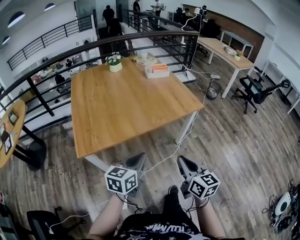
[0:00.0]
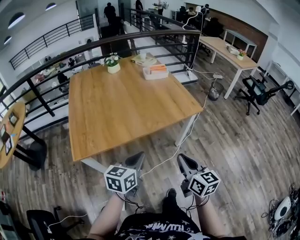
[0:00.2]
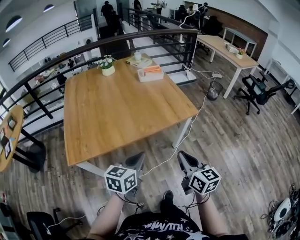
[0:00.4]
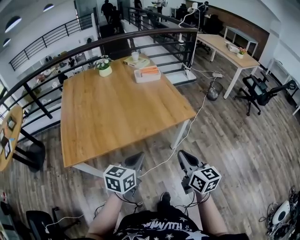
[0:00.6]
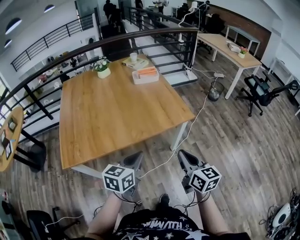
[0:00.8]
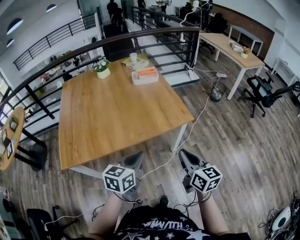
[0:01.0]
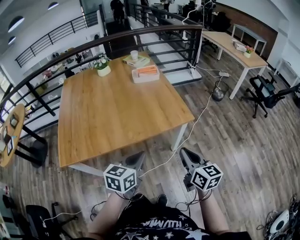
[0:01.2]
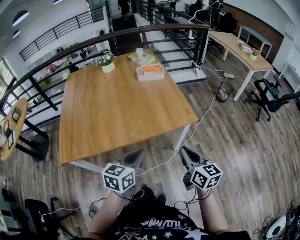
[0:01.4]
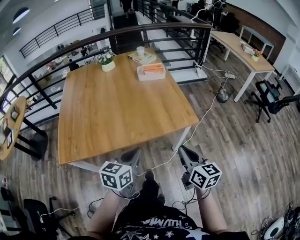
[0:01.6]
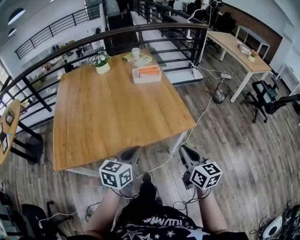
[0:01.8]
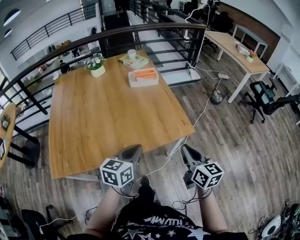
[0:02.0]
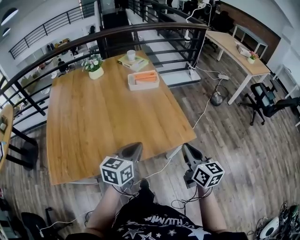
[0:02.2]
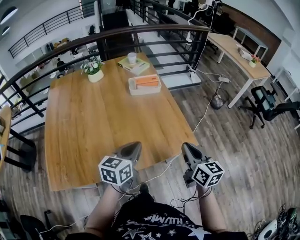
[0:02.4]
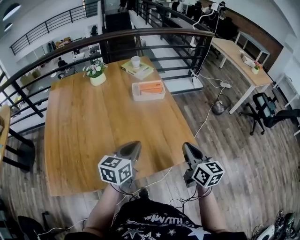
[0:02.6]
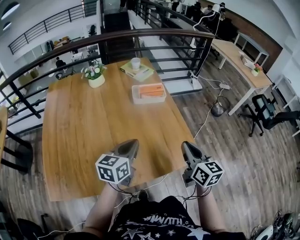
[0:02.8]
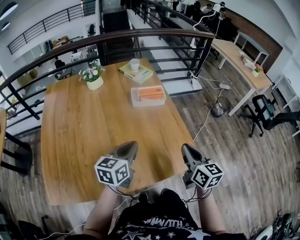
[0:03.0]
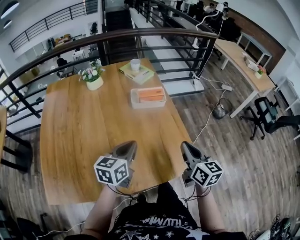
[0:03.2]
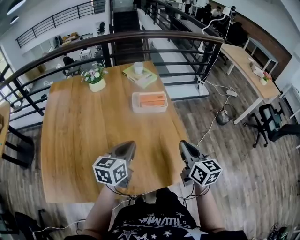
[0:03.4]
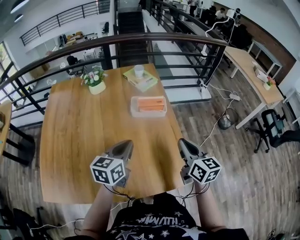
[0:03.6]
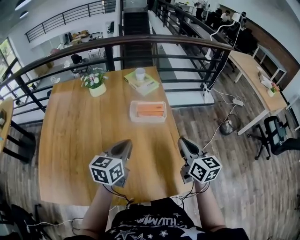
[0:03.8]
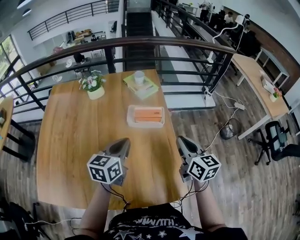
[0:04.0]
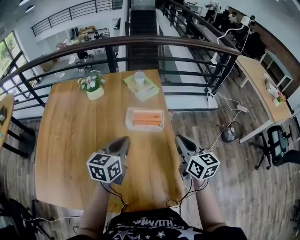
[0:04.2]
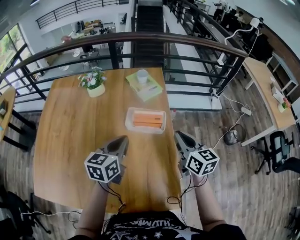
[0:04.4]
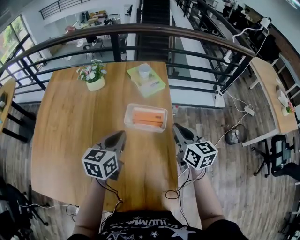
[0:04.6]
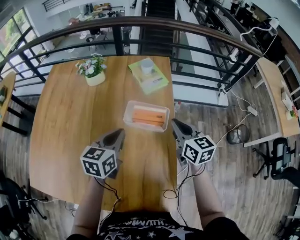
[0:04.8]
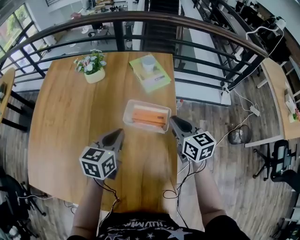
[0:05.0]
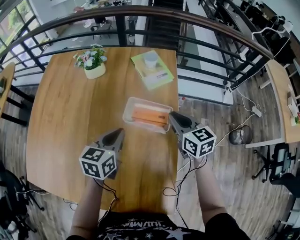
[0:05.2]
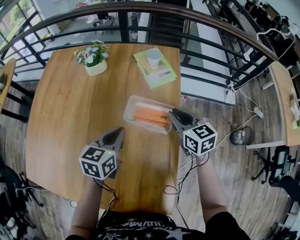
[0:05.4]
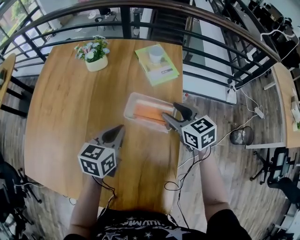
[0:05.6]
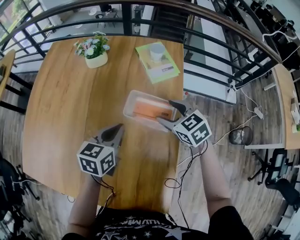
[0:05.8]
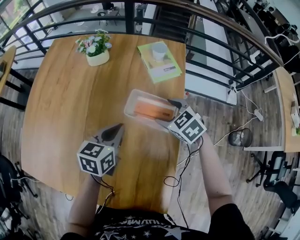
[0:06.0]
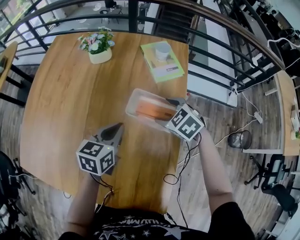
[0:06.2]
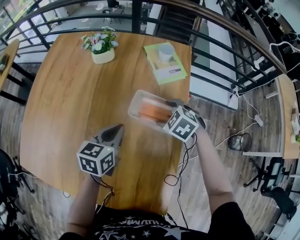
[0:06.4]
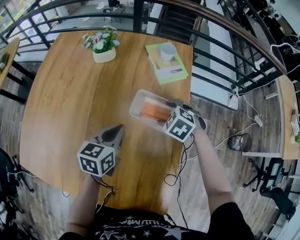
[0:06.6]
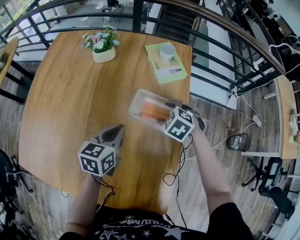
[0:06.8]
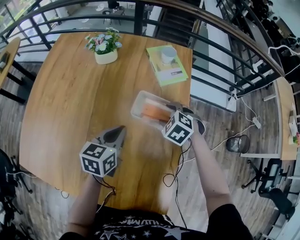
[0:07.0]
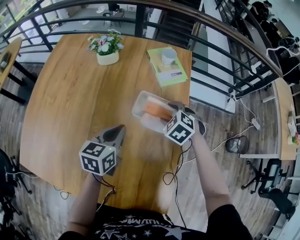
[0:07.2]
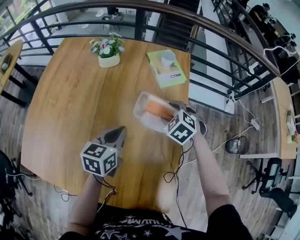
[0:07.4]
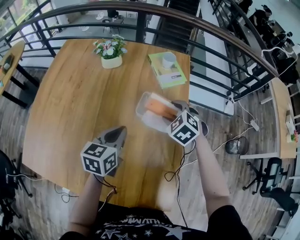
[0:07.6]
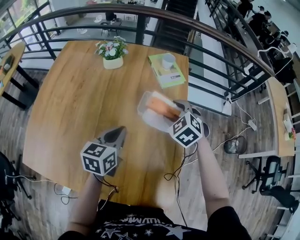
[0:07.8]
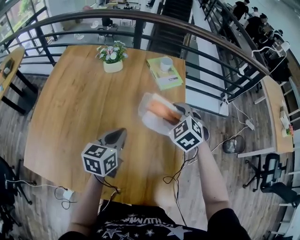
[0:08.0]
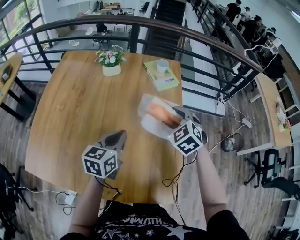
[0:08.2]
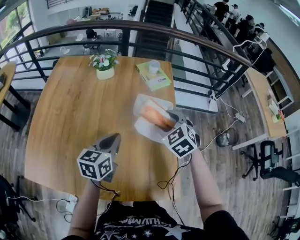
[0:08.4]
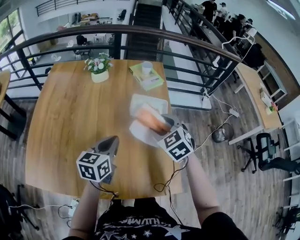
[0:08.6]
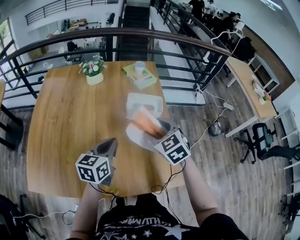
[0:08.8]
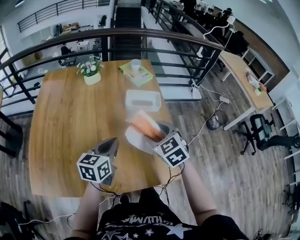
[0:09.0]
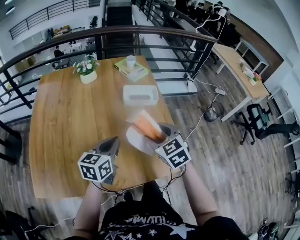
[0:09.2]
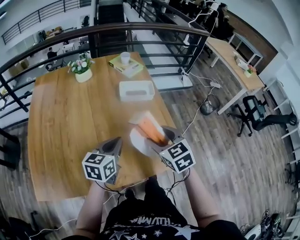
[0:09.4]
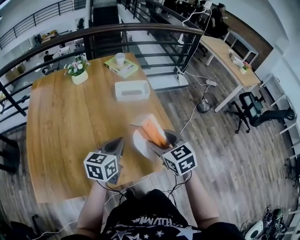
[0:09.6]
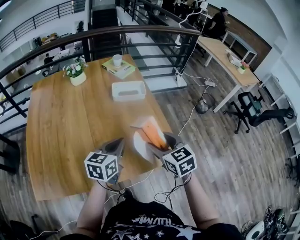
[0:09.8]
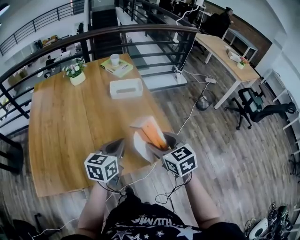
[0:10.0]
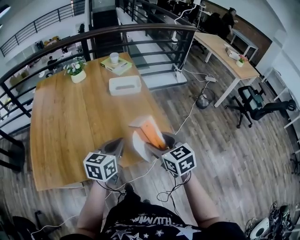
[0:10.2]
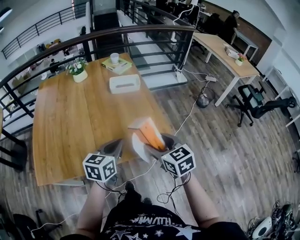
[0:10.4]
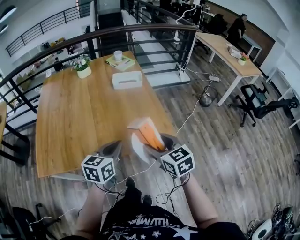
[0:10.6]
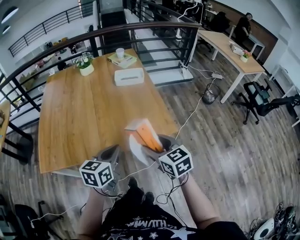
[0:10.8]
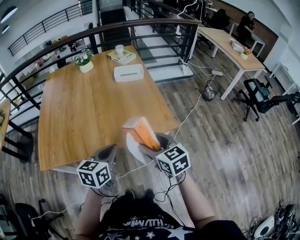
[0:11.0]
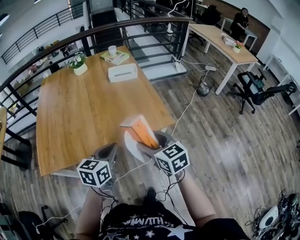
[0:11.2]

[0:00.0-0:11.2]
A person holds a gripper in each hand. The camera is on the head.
0:00.0 to 0:01.6: Both grippers travel together forward and to the right, roughly 30 cm.
0:01.6 to 0:03.2: The two grippers go approximately 40 cm forward.
0:03.2 to 0:04.8: Both grippers move forward, about 35 cm. The right gripper swivels approximately 30 degrees. The left gripper turns by approximately 20 degrees.
0:04.8 to 0:06.4: The left gripper moves downward, some 10 cm; the right gripper travels downward, forward and to the left by some 20 cm, tilts its fingers roughly 40 degrees downward, and opens its fingers.
0:06.4 to 0:08.0: The right gripper is displaced upward and backward by approximately 15 cm, and changes its angle by approximately 20 degrees. Meanwhile the left gripper travels backward, upward and to the left by about 15 cm.
0:08.0 to 0:09.6: The left gripper is displaced backward by approximately 25 cm, and turns by roughly 30 degrees. Meanwhile the right gripper heads backward, covering some 35 cm, and rolls clockwise, seen from behind, by roughly 40 degrees.
0:09.6 to 0:11.2: The two grippers go roughly 25 cm backward.

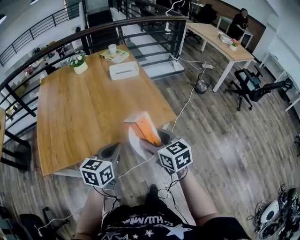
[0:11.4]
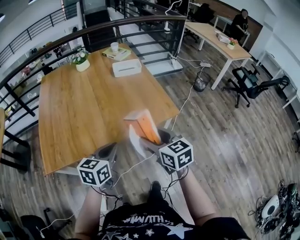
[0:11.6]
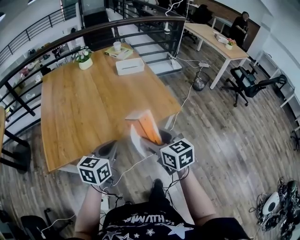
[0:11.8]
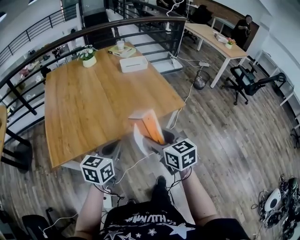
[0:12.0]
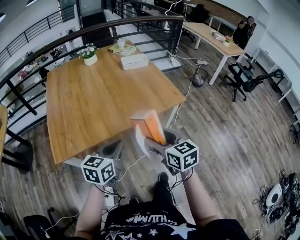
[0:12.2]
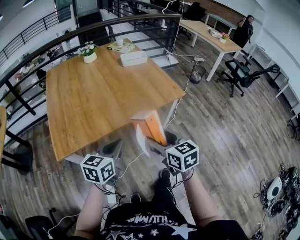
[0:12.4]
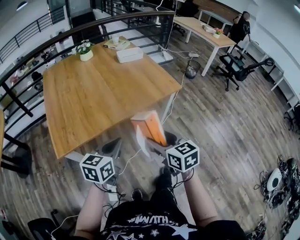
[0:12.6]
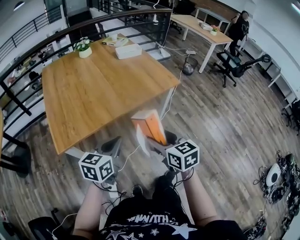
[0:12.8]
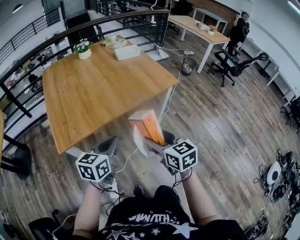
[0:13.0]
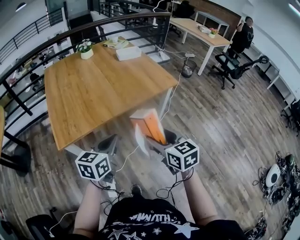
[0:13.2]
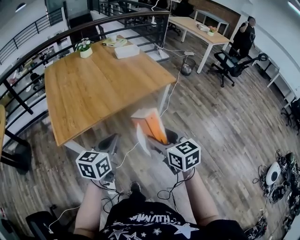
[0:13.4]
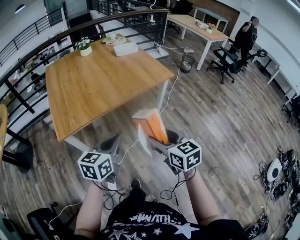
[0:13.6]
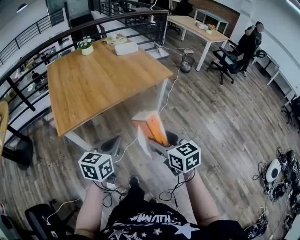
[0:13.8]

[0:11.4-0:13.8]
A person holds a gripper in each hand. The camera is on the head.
0:11.4 to 0:12.6: Both grippers travel together backward and to the left, roughly 30 cm.
0:12.6 to 0:13.8: Both grippers travel together backward, some 20 cm.

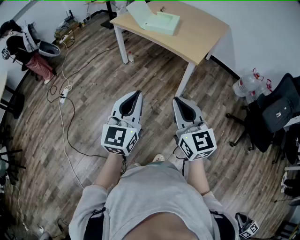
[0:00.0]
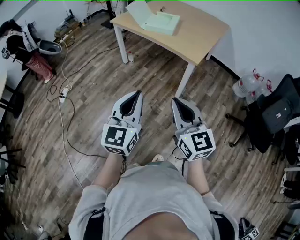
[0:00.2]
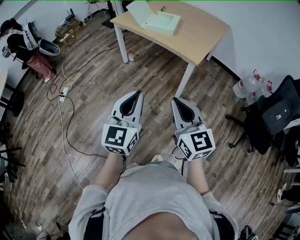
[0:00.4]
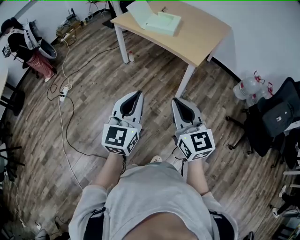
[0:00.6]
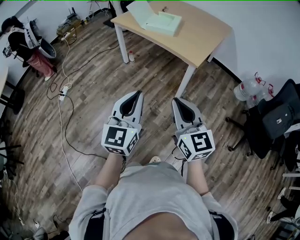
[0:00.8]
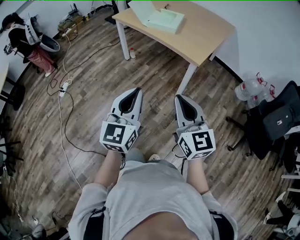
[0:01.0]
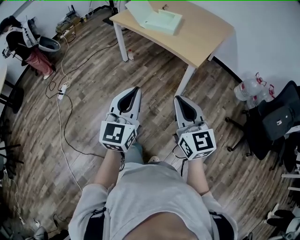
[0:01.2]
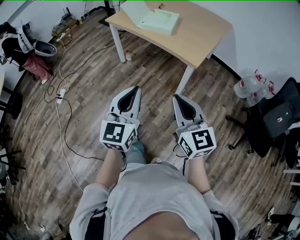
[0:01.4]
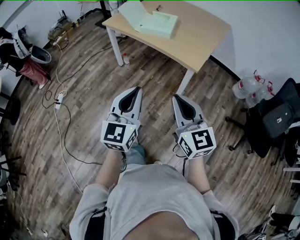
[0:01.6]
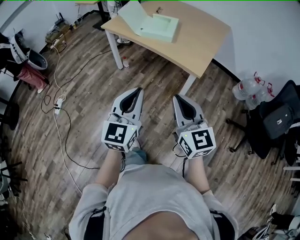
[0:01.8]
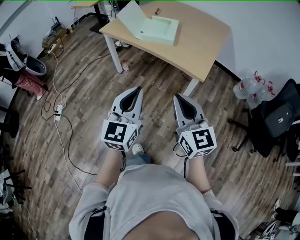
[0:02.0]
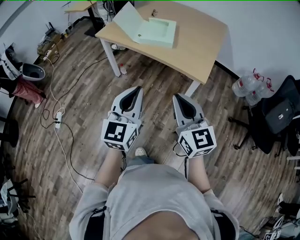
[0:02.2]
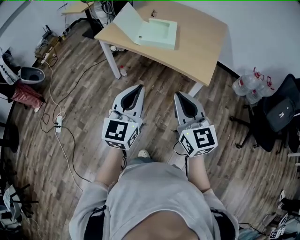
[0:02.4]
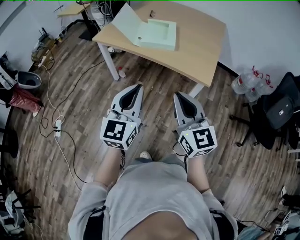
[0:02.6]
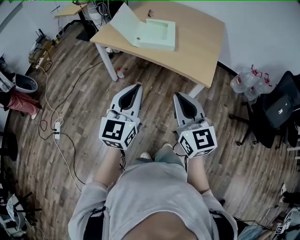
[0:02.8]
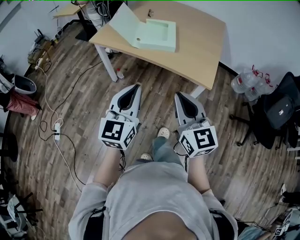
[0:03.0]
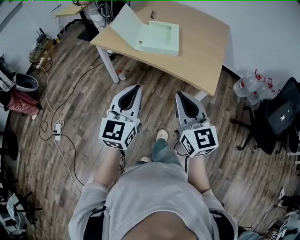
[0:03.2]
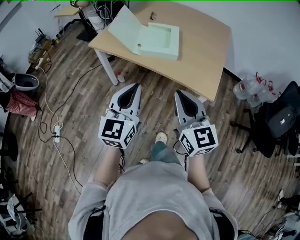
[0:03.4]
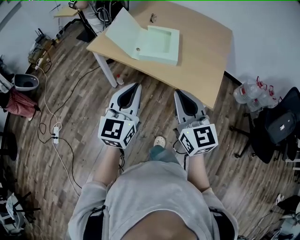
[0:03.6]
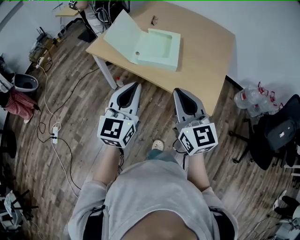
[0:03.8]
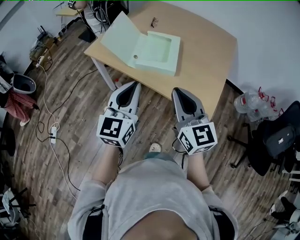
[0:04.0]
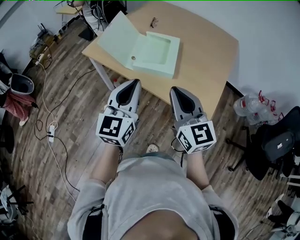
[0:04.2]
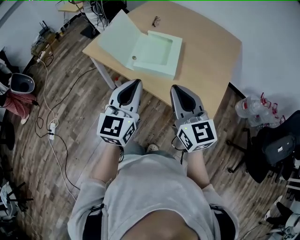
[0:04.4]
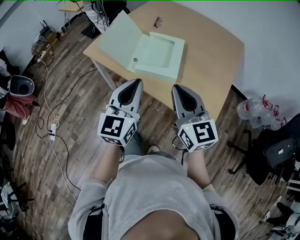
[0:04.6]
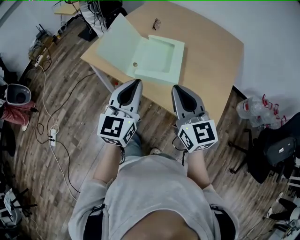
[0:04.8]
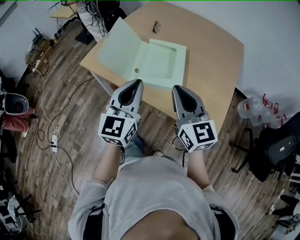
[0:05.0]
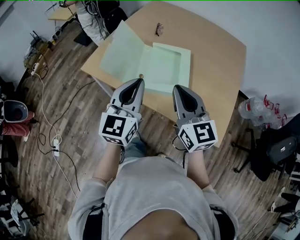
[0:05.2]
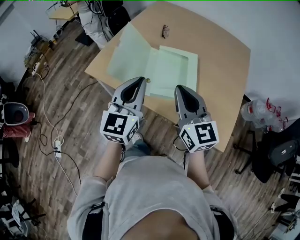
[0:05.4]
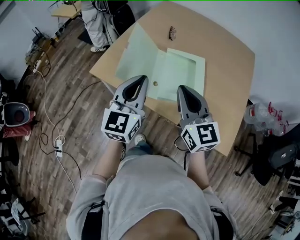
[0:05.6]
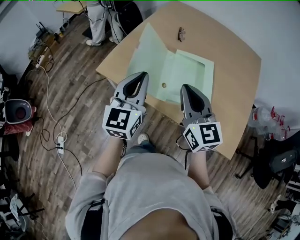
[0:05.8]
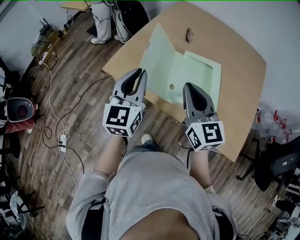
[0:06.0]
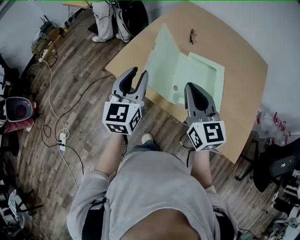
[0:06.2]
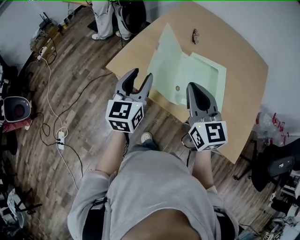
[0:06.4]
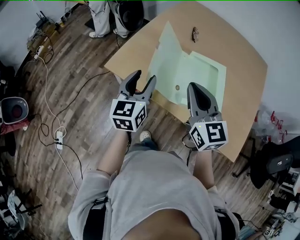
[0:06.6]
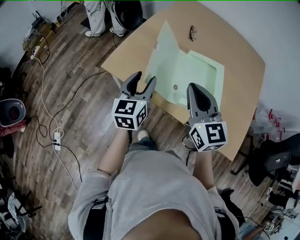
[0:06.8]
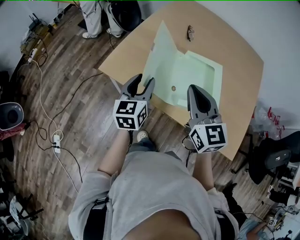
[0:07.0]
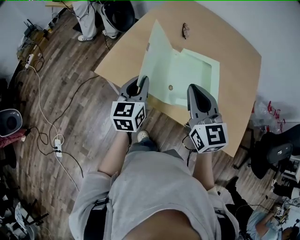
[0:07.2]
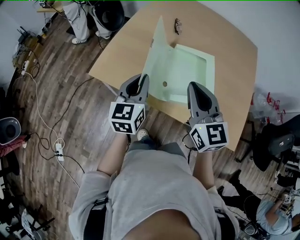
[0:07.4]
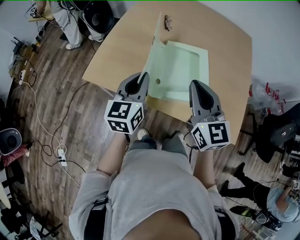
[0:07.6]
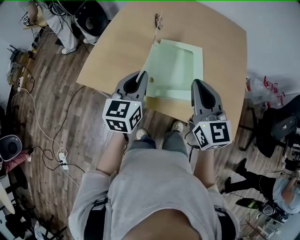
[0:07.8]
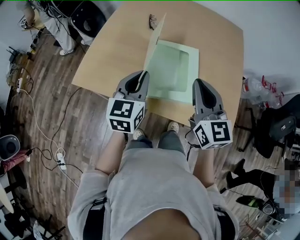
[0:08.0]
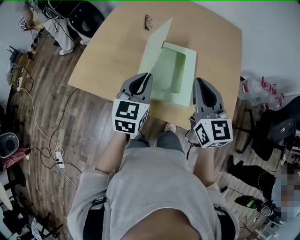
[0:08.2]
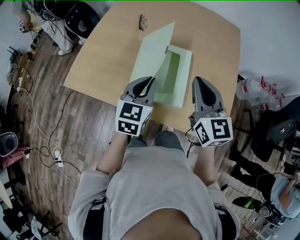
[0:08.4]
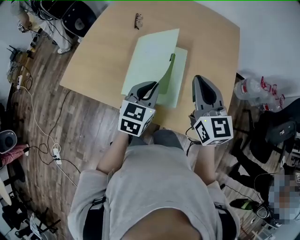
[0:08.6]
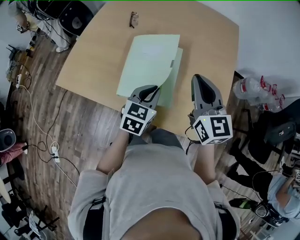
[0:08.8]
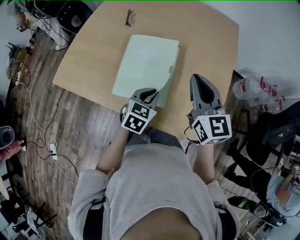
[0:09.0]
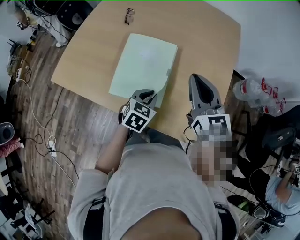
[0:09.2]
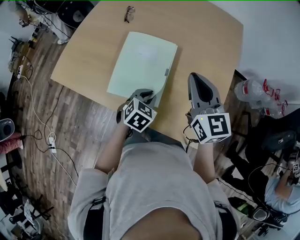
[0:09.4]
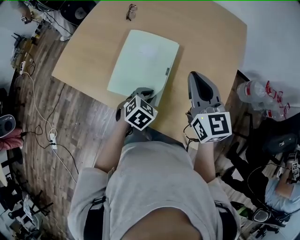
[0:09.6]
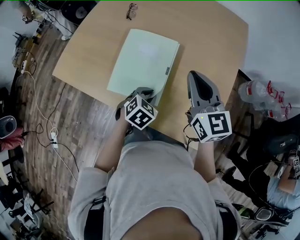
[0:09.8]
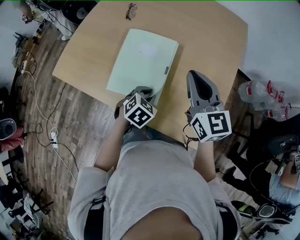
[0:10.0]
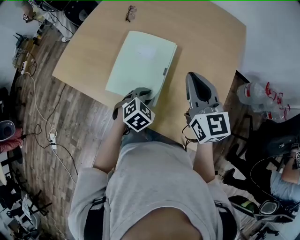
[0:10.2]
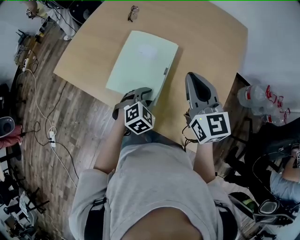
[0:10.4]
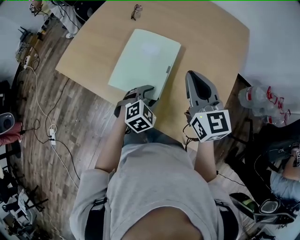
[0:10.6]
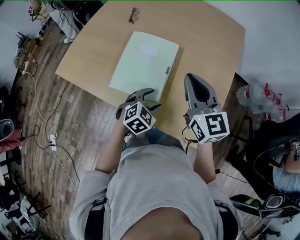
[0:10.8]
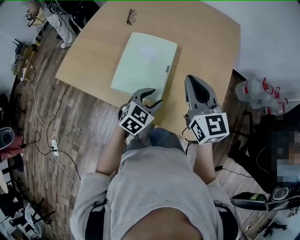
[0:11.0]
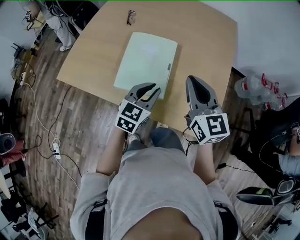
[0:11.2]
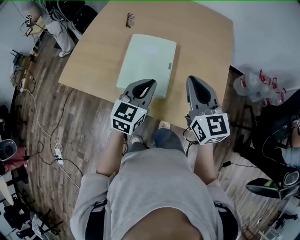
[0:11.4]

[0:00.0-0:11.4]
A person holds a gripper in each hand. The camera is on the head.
0:00.0 to 0:01.4: Both grippers move forward, approximately 10 cm.
0:01.4 to 0:02.8: Both grippers move forward and to the left, roughly 25 cm.
0:02.8 to 0:04.2: Both grippers travel together forward, about 25 cm.
0:04.2 to 0:05.6: Both grippers travel together forward and to the left, roughly 25 cm.
0:05.6 to 0:07.2: The right gripper is displaced to the left and forward by about 10 cm, while the left gripper goes approximately 20 cm downward, to the left and forward, and opens, then closes once more.
0:07.2 to 0:08.6: The two grippers go approximately 30 cm to the right. The left gripper turns by some 30 degrees.
0:08.6 to 0:10.0: The right gripper is displaced to the right by roughly 5 cm, while the left gripper is displaced downward and to the right by approximately 15 cm, and angles its fingers downward, by about 30 degrees.
0:10.0 to 0:11.4: The right gripper heads backward, covering about 10 cm, while the left gripper heads upward, covering roughly 15 cm, tips its fingers upward by about 40 degrees, and opens and closes again.
